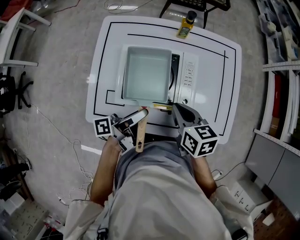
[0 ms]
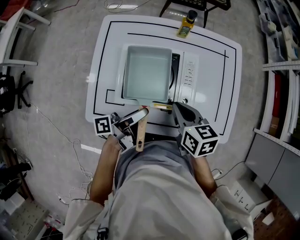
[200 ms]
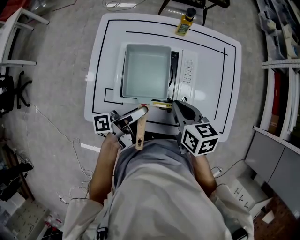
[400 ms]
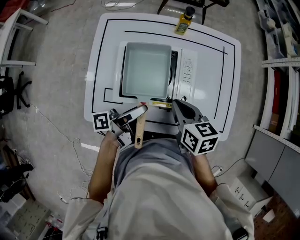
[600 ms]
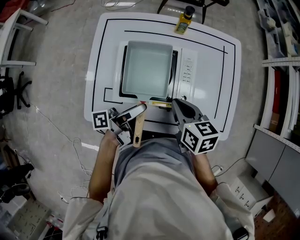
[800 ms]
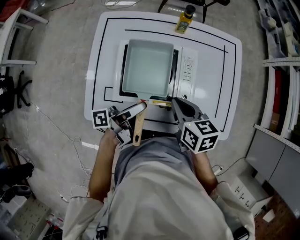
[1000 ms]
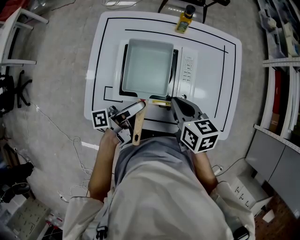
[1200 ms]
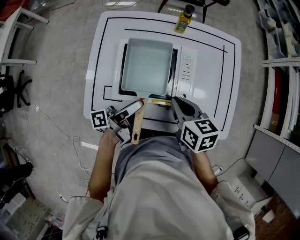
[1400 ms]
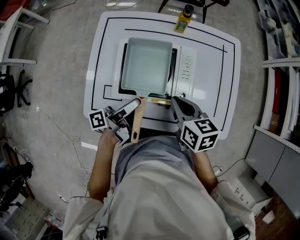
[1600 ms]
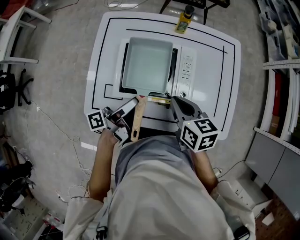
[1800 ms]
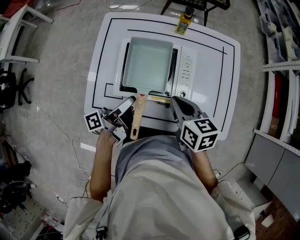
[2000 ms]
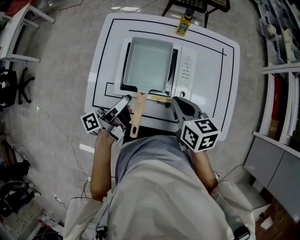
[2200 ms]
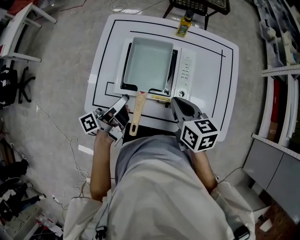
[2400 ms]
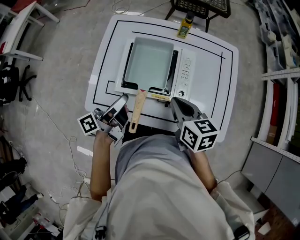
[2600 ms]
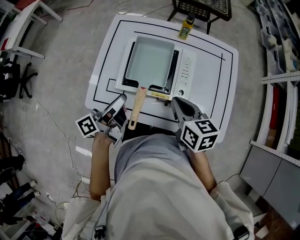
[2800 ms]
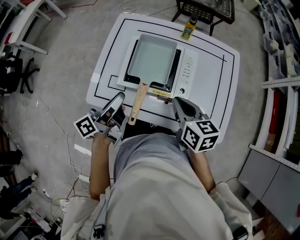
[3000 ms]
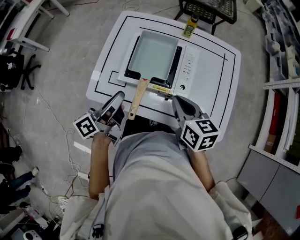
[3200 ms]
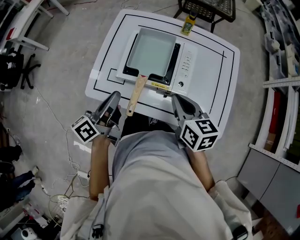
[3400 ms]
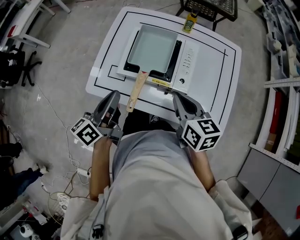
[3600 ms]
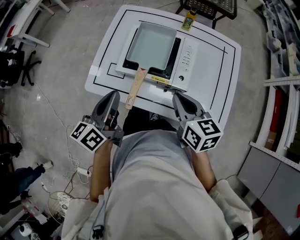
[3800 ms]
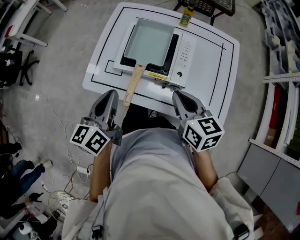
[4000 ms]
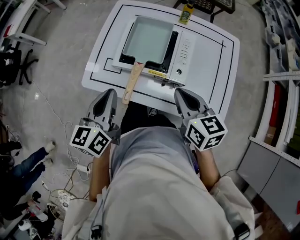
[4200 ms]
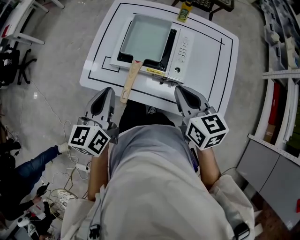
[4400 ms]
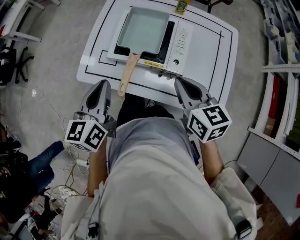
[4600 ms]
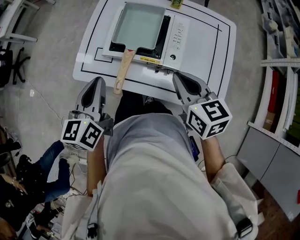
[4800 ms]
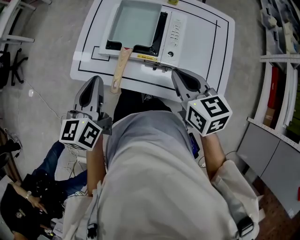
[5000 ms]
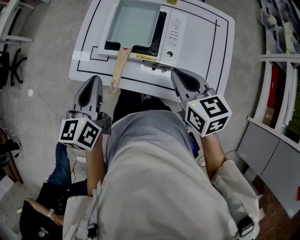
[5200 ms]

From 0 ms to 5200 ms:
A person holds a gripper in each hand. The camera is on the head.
From 1800 ms to 3400 ms: The right gripper shifts by about 5 cm.

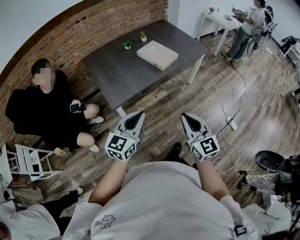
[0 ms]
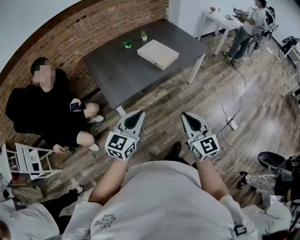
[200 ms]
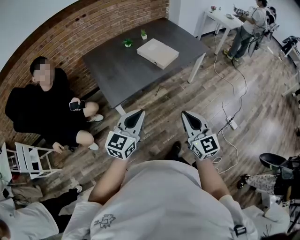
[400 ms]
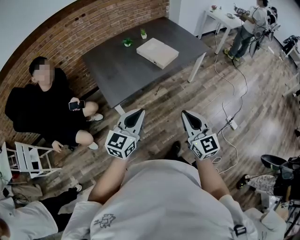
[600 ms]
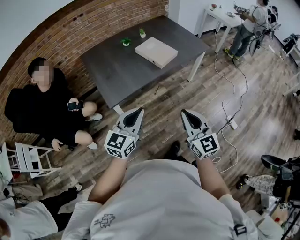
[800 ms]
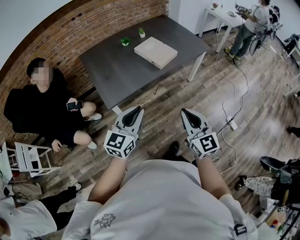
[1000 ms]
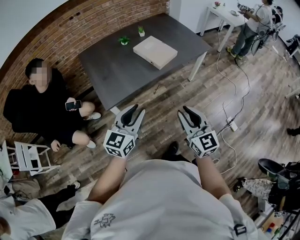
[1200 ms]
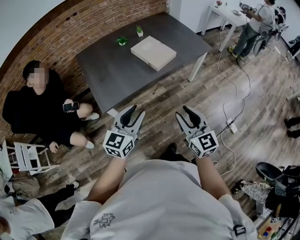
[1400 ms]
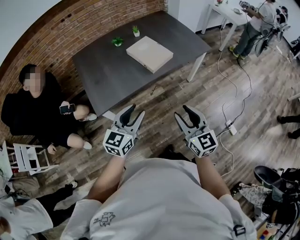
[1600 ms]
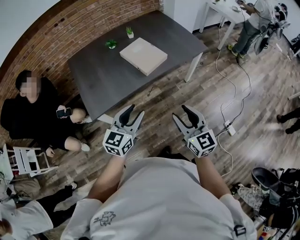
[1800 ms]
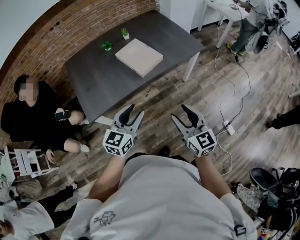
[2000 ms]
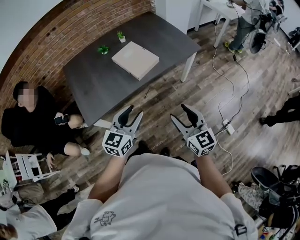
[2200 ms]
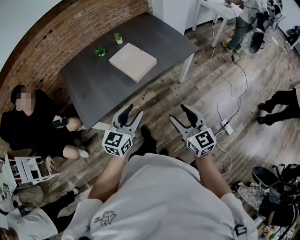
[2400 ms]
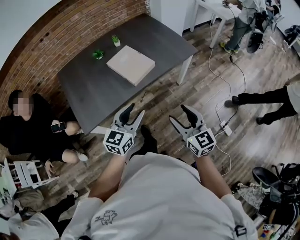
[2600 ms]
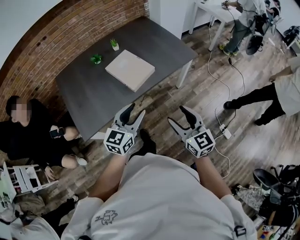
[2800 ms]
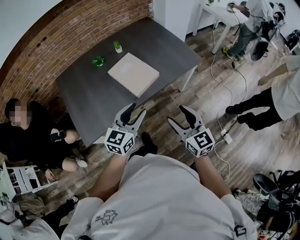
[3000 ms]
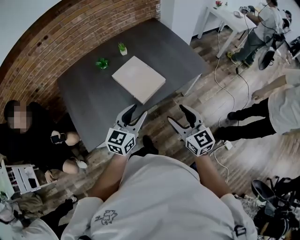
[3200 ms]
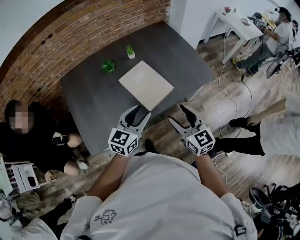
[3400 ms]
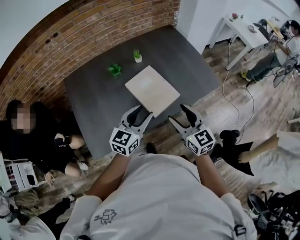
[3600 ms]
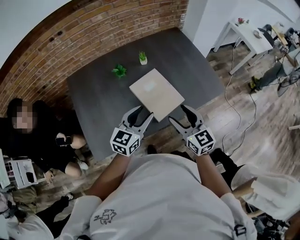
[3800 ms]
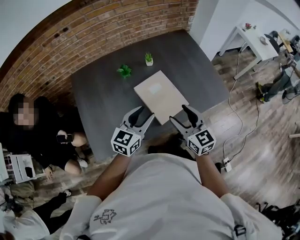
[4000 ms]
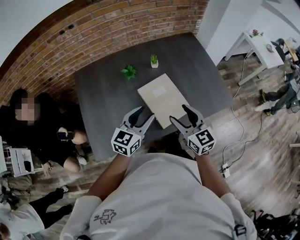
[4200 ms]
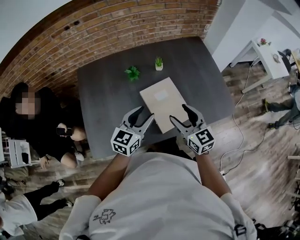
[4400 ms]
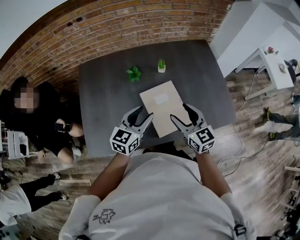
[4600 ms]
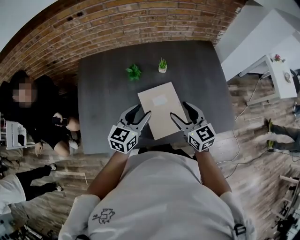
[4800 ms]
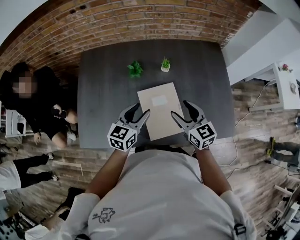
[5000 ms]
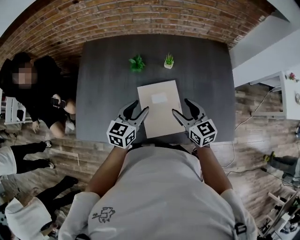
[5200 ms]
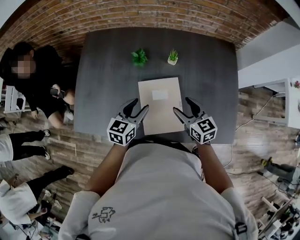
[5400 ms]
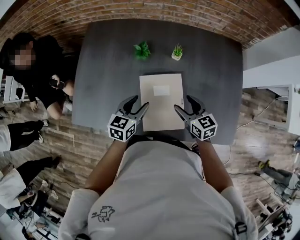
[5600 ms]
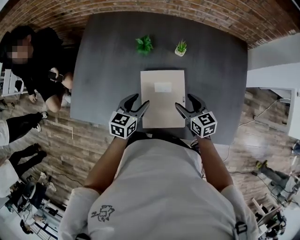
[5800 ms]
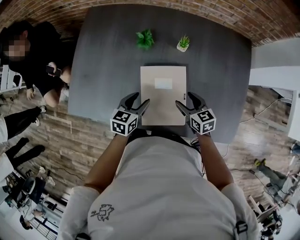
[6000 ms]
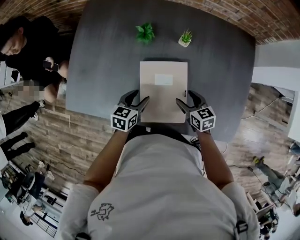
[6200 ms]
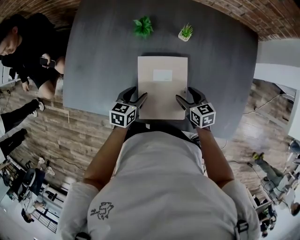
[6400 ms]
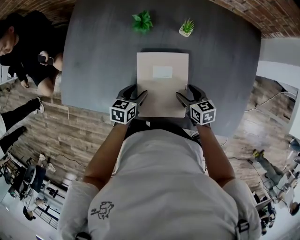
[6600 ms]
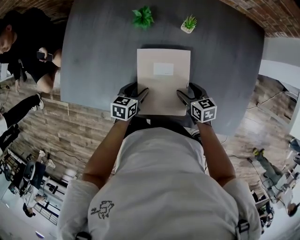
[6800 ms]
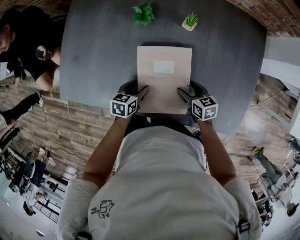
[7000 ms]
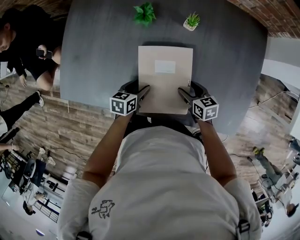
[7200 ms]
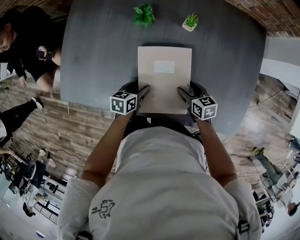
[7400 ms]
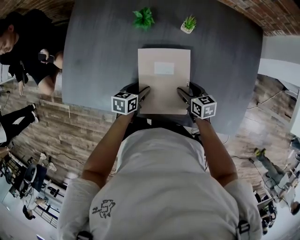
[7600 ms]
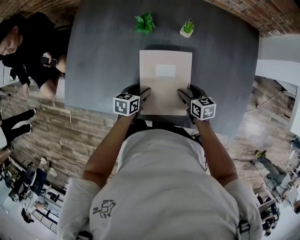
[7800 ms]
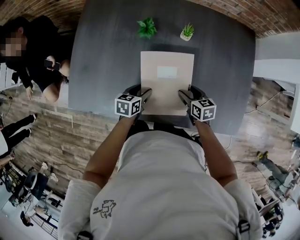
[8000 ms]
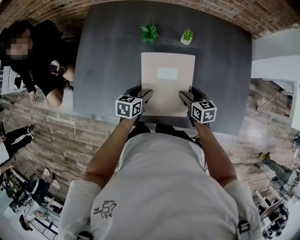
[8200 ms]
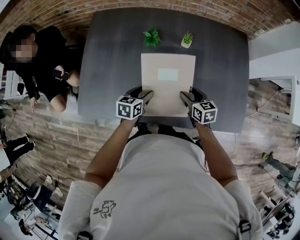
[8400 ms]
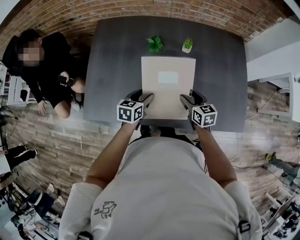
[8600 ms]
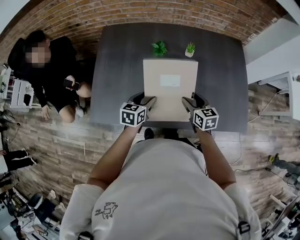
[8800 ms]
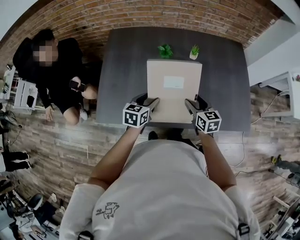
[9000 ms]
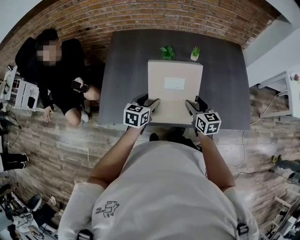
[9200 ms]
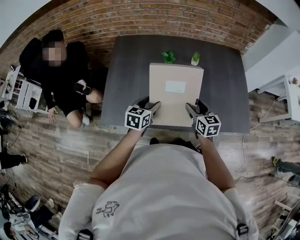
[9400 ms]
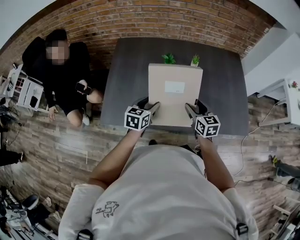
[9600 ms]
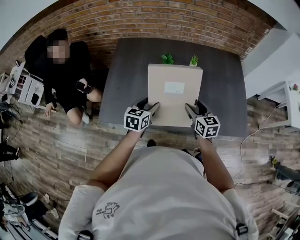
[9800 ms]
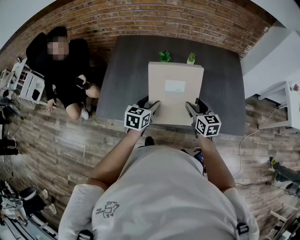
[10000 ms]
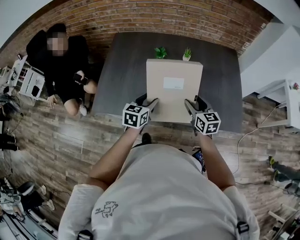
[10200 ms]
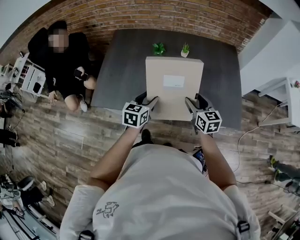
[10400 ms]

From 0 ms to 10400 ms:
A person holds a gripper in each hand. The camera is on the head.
From 0 ms to 1400 ms: Both grippers travel together forward and to the right, approximately 15 cm. The right gripper opens. Meanwhile the left gripper opens its fingers.
From 1400 ms to 3000 ms: Both grippers move forward and to the right, approximately 25 cm. The right gripper opens its fingers.
From 3000 ms to 4400 ms: The two grippers go approximately 30 cm forward and to the left.
From 4400 ms to 6000 ms: Both grippers travel together downward, approximately 20 cm. The right gripper rotates roughly 40 degrees; the left gripper swivels approximately 40 degrees.
From 6000 ms to 7400 ms: The two grippers go about 10 cm downward.
From 7400 ms to 9000 ms: The grippers both shift upward and to the left by roughly 20 cm. The right gripper changes its angle by about 30 degrees, while the left gripper swivels some 30 degrees.
From 9000 ms to 10400 ms: The left gripper goes about 15 cm backward, to the right and upward, while the right gripper goes roughly 15 cm to the right, backward and upward.

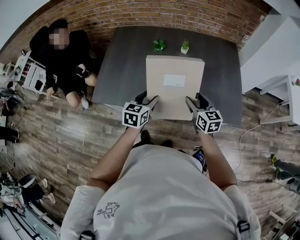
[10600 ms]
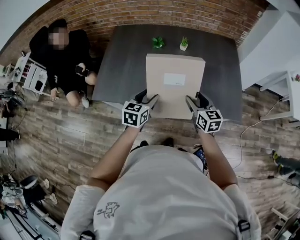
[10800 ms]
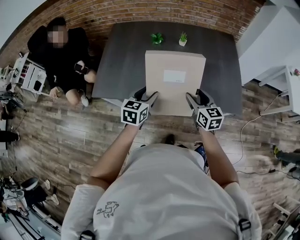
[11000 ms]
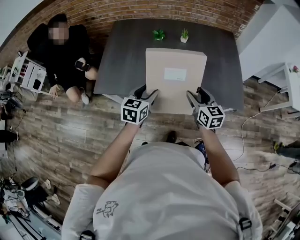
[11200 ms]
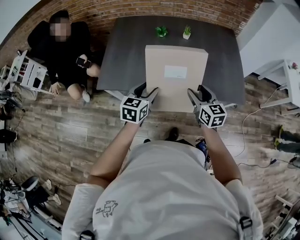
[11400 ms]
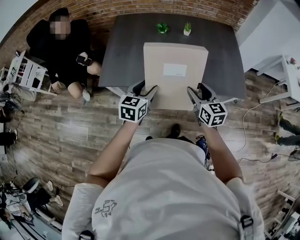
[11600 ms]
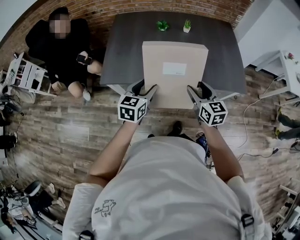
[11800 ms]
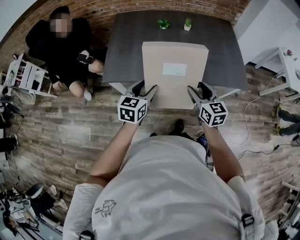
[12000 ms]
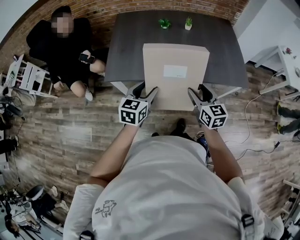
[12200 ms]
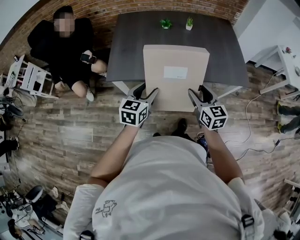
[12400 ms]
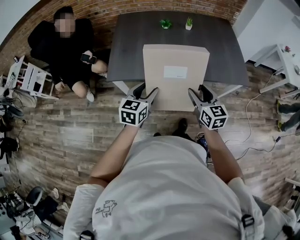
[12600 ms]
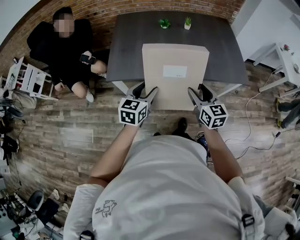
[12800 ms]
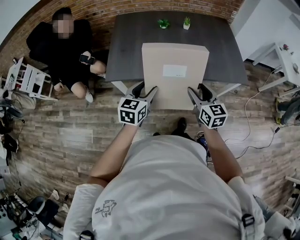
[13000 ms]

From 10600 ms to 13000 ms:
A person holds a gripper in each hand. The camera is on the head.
From 10600 ms to 11800 ms: The grippers both shift backward and to the left by some 20 cm.
From 11800 ms to 13000 ms: Both grippers move backward, some 5 cm.

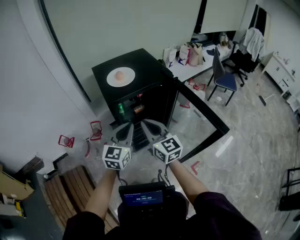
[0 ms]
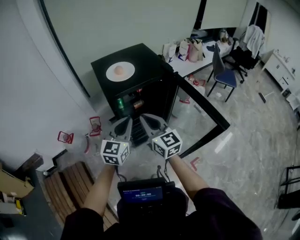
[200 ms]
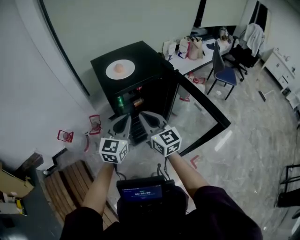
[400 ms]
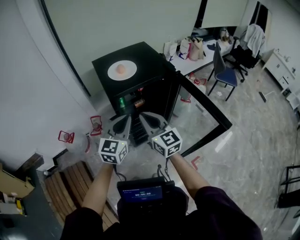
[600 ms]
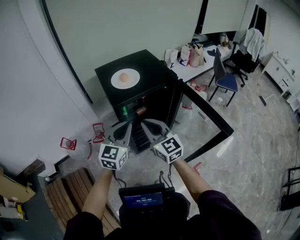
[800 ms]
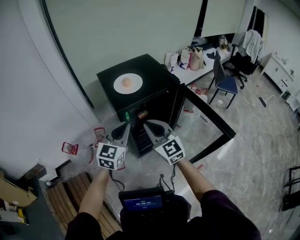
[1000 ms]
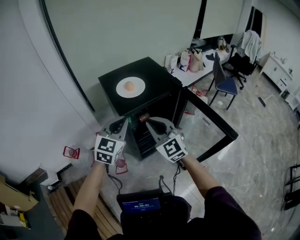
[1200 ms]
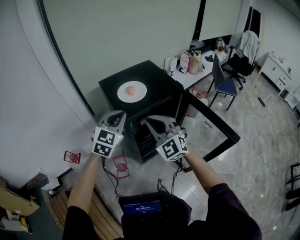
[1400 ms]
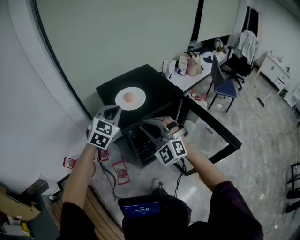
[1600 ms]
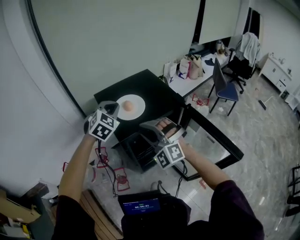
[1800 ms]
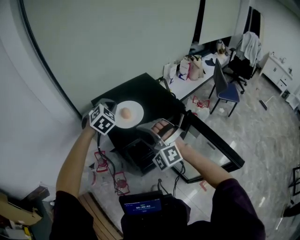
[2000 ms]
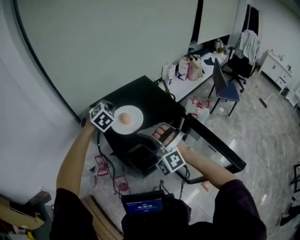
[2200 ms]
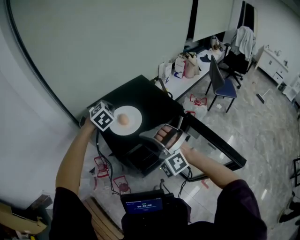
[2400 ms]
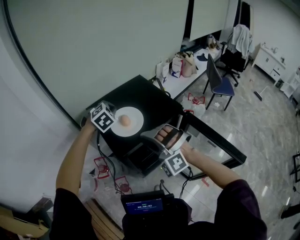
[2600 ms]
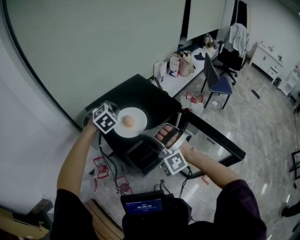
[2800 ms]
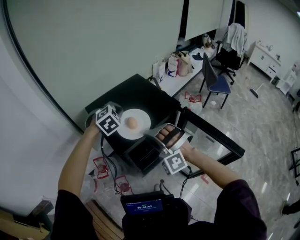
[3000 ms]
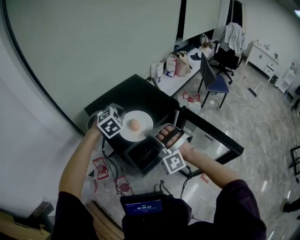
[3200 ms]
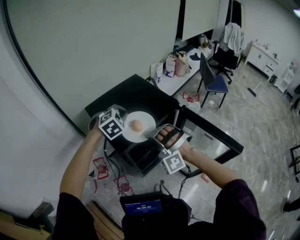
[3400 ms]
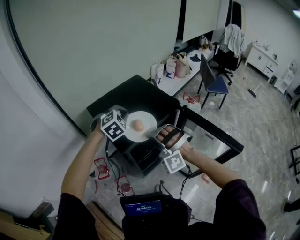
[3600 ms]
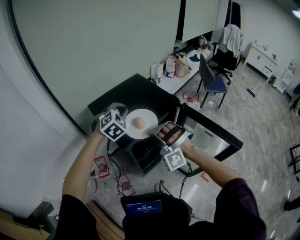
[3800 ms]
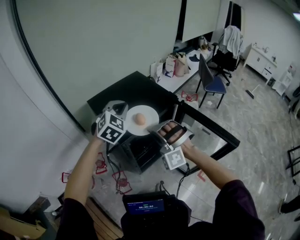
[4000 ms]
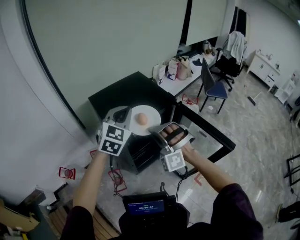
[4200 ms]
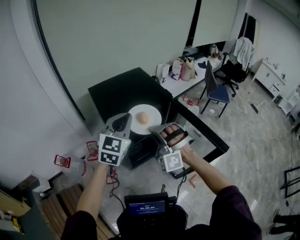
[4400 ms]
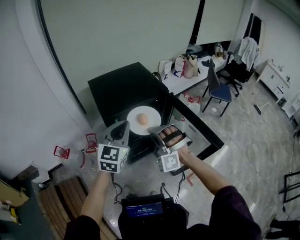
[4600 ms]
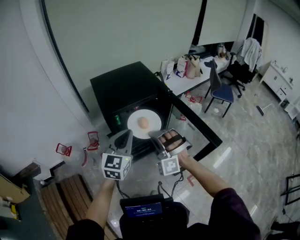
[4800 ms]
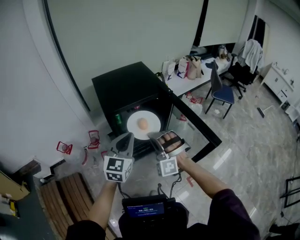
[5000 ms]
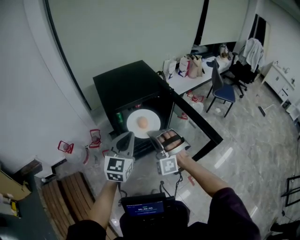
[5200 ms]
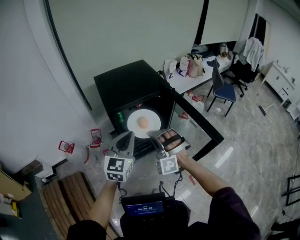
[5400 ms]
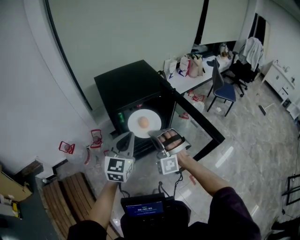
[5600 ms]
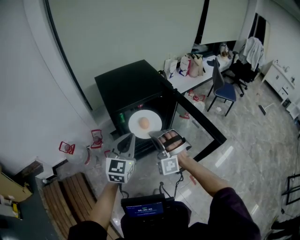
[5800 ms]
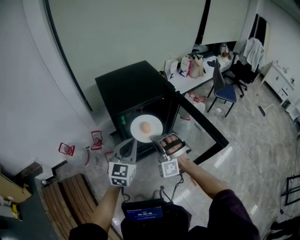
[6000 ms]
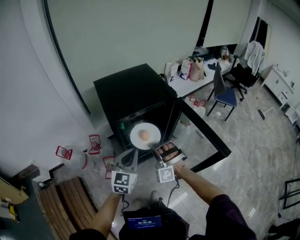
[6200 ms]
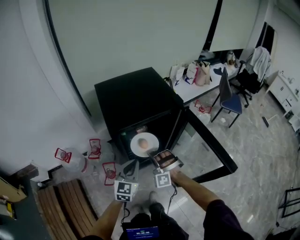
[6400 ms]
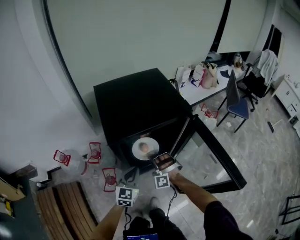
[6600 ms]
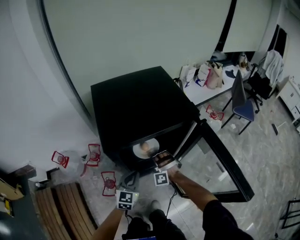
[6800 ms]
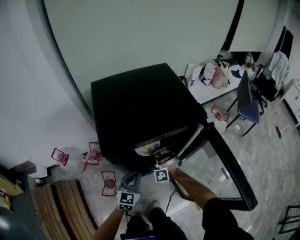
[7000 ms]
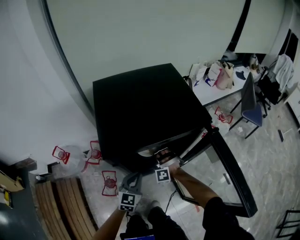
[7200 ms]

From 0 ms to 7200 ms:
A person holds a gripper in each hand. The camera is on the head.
From 0 ms to 1400 ms: The left gripper is displaced forward, to the left and upward by roughly 15 cm, and rotates approximately 30 degrees. Meanwhile the right gripper moves forward and to the left, some 10 cm, and rotates around the line of its fingers by about 50 degrees, counterclockwise from behind.
From 1400 ms to 2800 ms: The right gripper goes approximately 5 cm forward, twists some 40 degrees counterclockwise, seen from behind, and opens up. Meanwhile the left gripper is displaced forward by some 20 cm, and angles its fingers downward, by some 30 degrees.
From 2800 ms to 4400 ms: The right gripper travels backward and to the right by about 10 cm, and closes its fingers. Meanwhile the left gripper shifts approximately 25 cm backward and upward, and tips its fingers upward by approximately 40 degrees.
From 4400 ms to 5800 ms: The left gripper heads backward and downward, covering some 15 cm, while the right gripper goes some 5 cm backward.
From 5800 ms to 7200 ms: Both grippers move downward and forward, approximately 35 cm. The right gripper turns by some 30 degrees.
